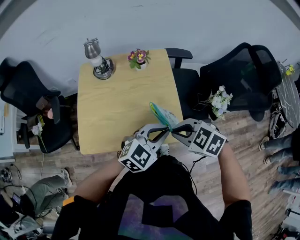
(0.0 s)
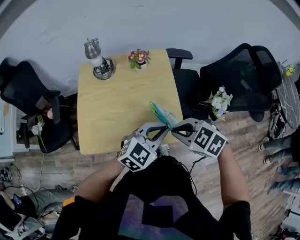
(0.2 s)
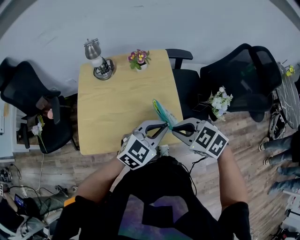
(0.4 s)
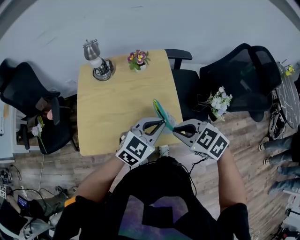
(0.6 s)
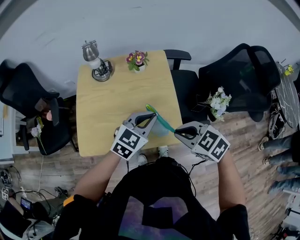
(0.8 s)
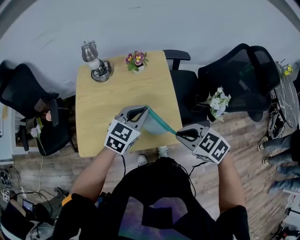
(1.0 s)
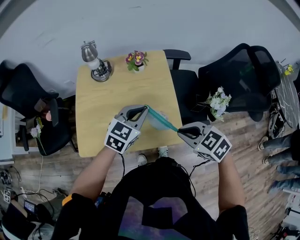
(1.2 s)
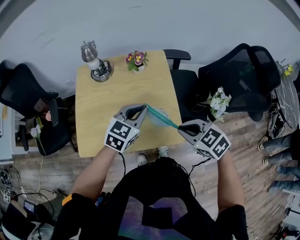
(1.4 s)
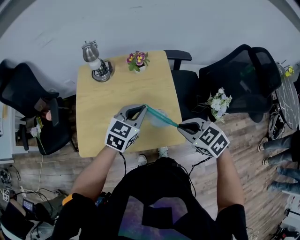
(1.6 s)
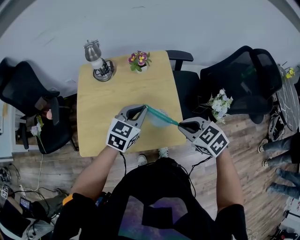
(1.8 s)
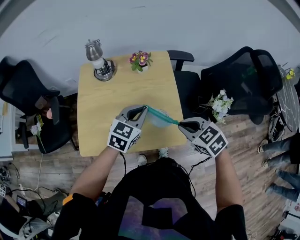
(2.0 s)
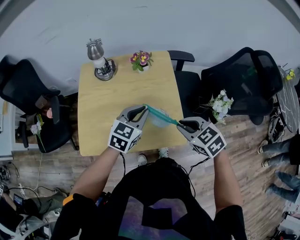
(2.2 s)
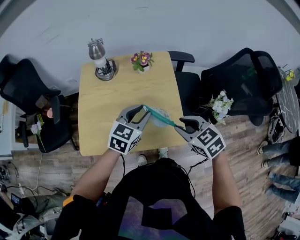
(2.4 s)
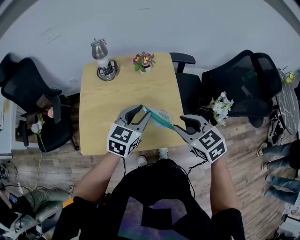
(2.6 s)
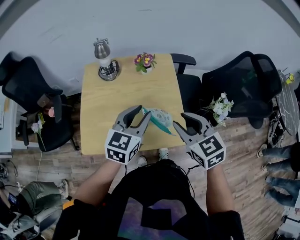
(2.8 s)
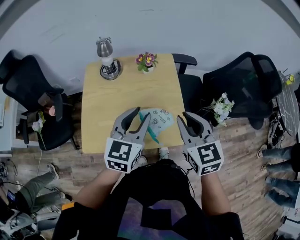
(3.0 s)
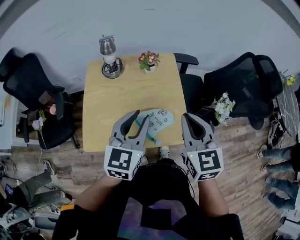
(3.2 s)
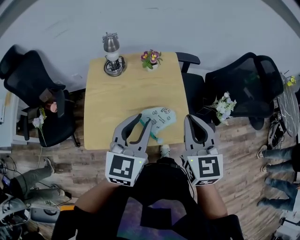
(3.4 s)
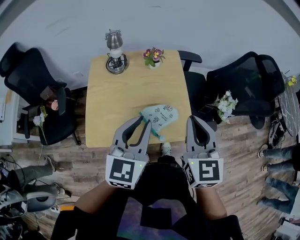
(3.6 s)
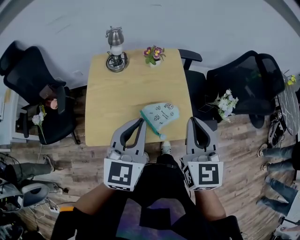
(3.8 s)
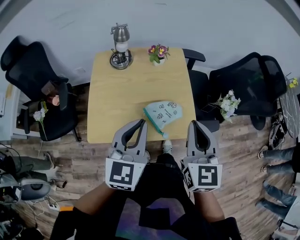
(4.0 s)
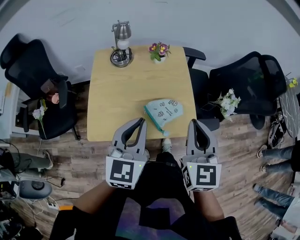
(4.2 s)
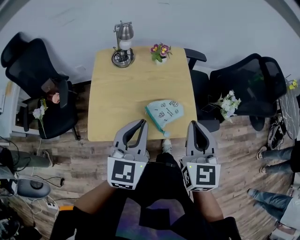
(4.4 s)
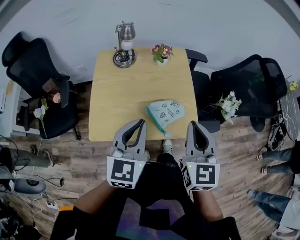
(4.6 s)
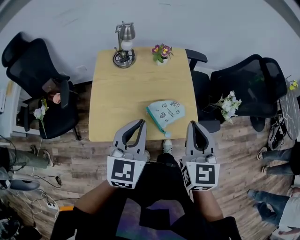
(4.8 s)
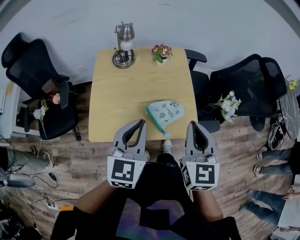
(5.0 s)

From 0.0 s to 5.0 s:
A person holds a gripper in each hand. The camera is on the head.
From 0.0 s to 1.6 s: The right gripper changes place by roughly 5 cm; the left gripper shifts about 15 cm forward and to the left, and swivels approximately 20 degrees.
From 1.6 s to 3.4 s: The right gripper travels upward by about 15 cm, tips its fingers upward by roughly 30 degrees, and opens and closes again. Meanwhile the left gripper travels upward, backward and to the left by roughly 15 cm, changes its angle by about 20 degrees, and opens.
From 3.4 s to 5.0 s: The right gripper shifts by approximately 5 cm. The left gripper ends up approximately 5 cm from where it was, and closes up.

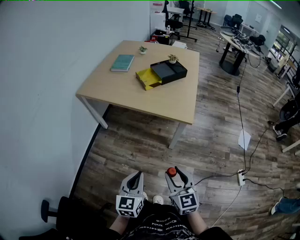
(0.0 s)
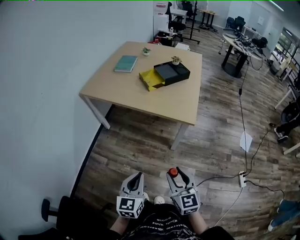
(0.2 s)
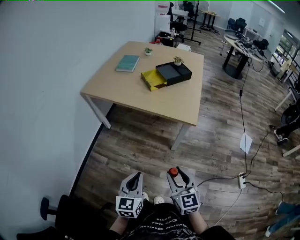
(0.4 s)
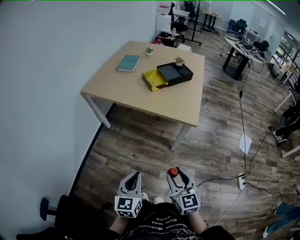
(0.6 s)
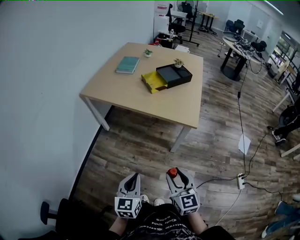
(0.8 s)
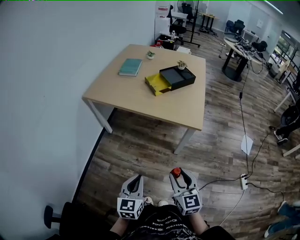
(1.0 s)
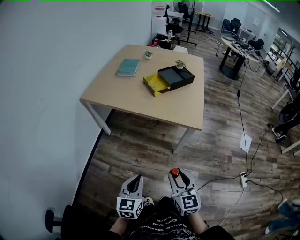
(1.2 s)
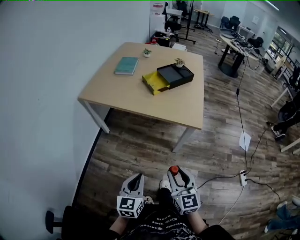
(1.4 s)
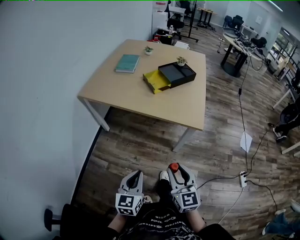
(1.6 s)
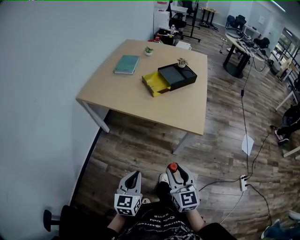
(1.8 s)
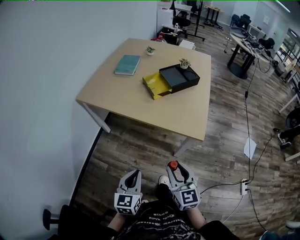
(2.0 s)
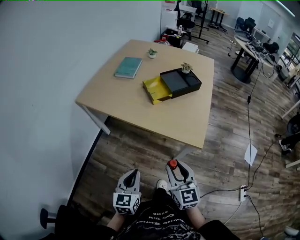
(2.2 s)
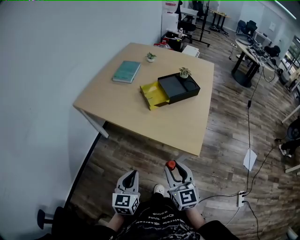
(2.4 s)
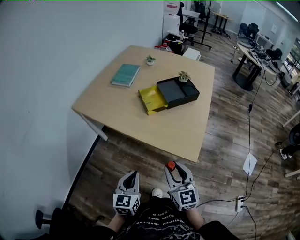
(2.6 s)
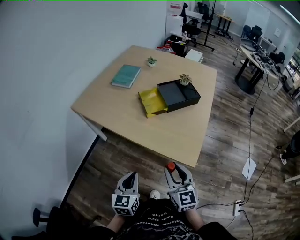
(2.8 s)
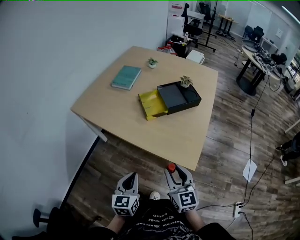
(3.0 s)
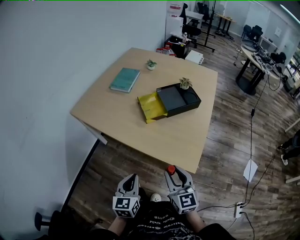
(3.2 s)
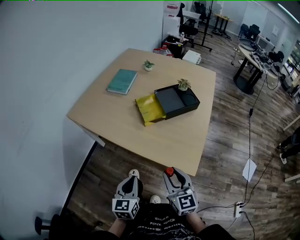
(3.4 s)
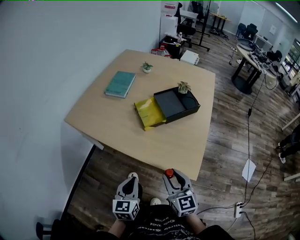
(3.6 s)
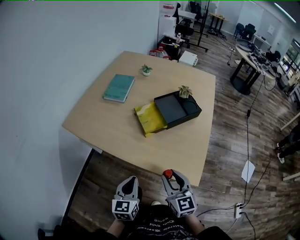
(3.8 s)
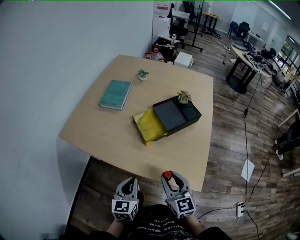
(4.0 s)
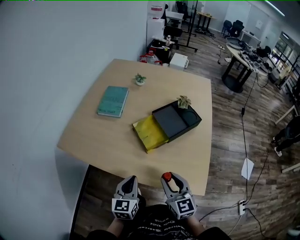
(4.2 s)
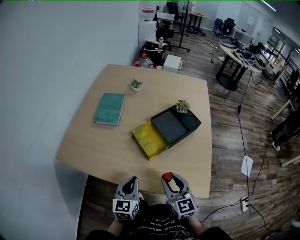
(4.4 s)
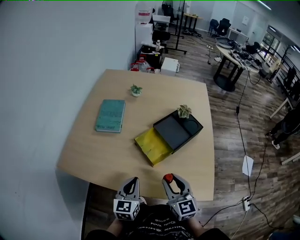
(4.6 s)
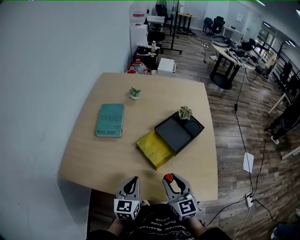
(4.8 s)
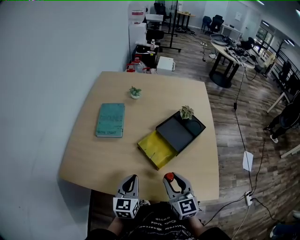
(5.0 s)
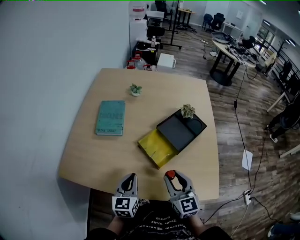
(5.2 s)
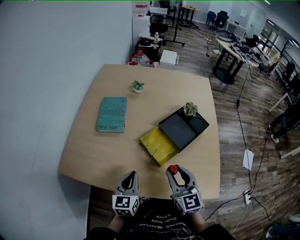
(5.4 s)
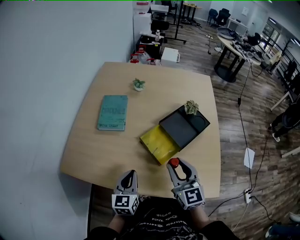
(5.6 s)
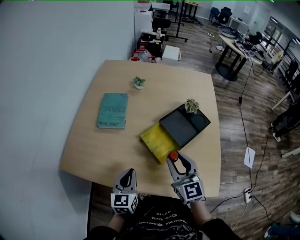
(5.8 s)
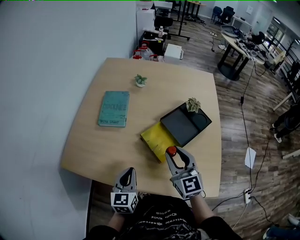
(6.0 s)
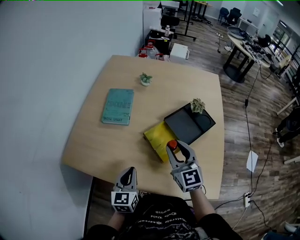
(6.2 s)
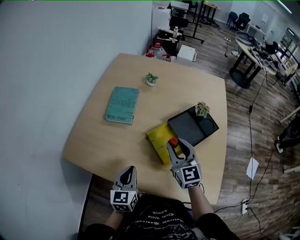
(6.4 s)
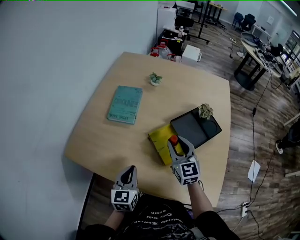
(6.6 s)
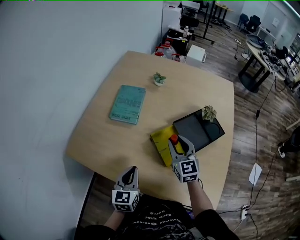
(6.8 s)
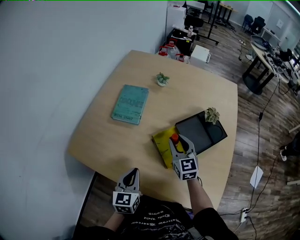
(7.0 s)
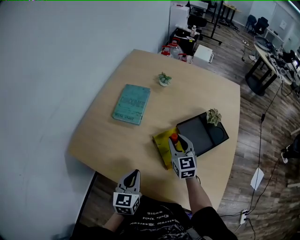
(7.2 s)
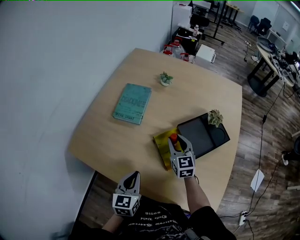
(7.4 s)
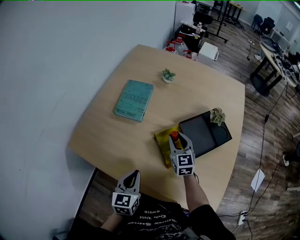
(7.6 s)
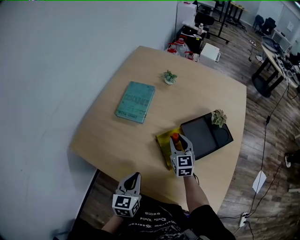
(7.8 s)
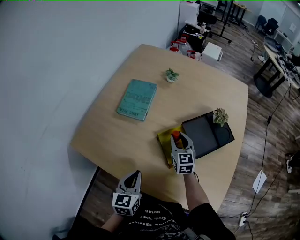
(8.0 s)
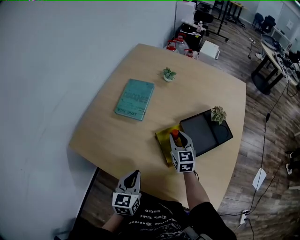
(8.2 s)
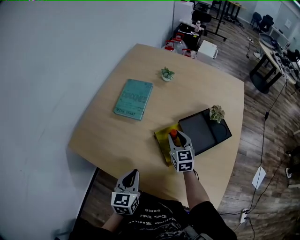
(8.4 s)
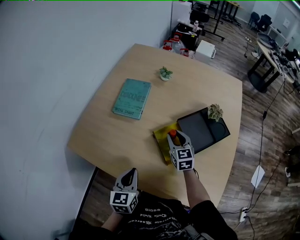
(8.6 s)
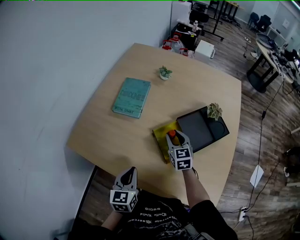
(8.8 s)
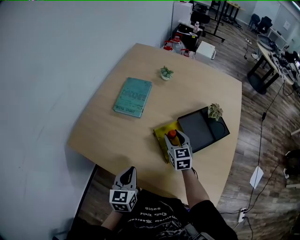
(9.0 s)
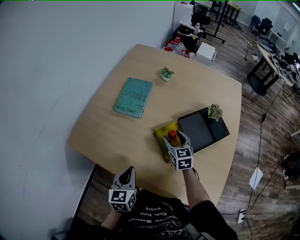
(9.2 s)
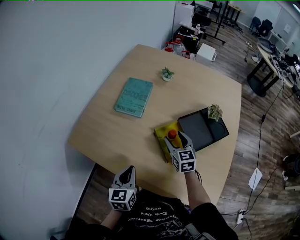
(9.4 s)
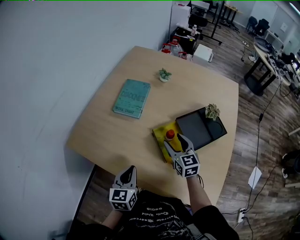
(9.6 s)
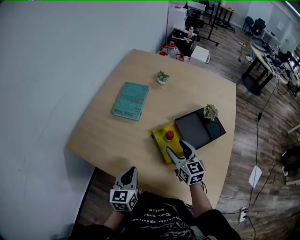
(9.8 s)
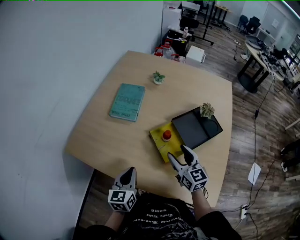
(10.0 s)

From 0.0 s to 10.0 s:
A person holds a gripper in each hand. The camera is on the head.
From 0.0 s to 1.4 s: Both grippers move to the left, some 10 cm.
From 1.4 s to 2.8 s: Both grippers move forward and to the right, roughly 25 cm.
From 2.8 s to 4.2 s: The two grippers go approximately 20 cm forward.
From 4.2 s to 5.8 s: The left gripper goes approximately 15 cm forward and to the left, while the right gripper goes roughly 15 cm forward.
From 5.8 s to 7.2 s: The right gripper shifts about 20 cm forward and downward.
From 7.2 s to 8.6 s: The grippers stay close to where they were, moving slightly.
From 8.6 s to 10.0 s: The right gripper moves backward and upward, approximately 15 cm, and opens up.

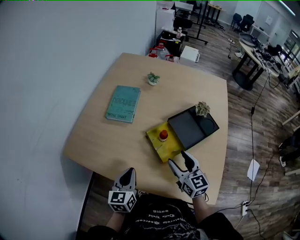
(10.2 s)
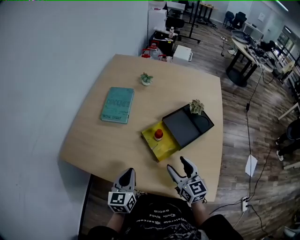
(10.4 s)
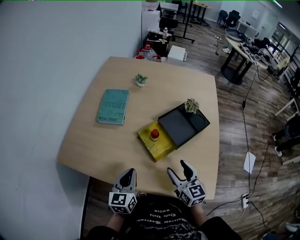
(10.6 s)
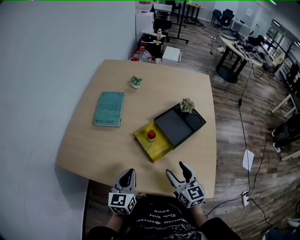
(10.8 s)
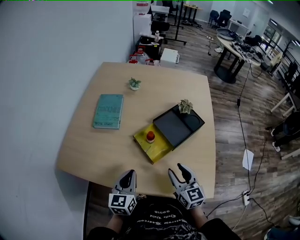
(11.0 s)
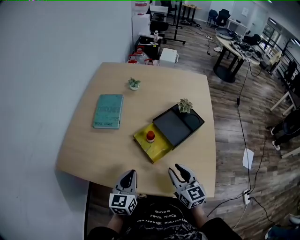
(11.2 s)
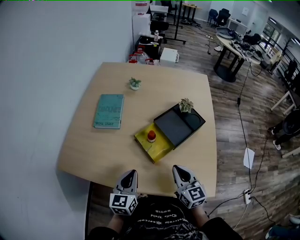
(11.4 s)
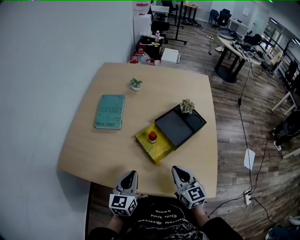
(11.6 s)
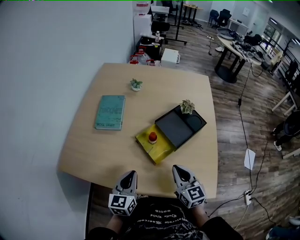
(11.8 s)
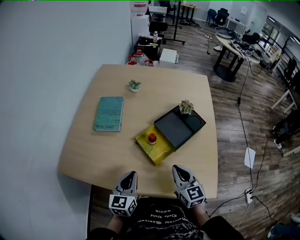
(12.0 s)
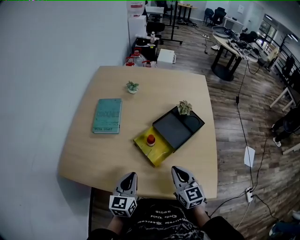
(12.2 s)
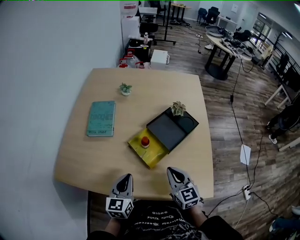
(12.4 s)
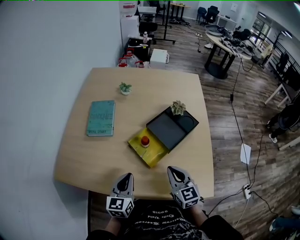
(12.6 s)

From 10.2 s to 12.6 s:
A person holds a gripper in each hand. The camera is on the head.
From 10.2 s to 11.4 s: The right gripper goes approximately 5 cm backward, and closes its fingers. The left gripper shifts by approximately 5 cm.
From 11.4 s to 12.6 s: The grippers make only small movements.

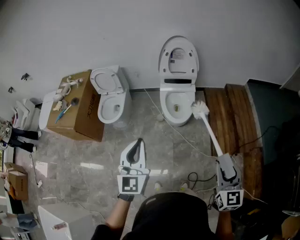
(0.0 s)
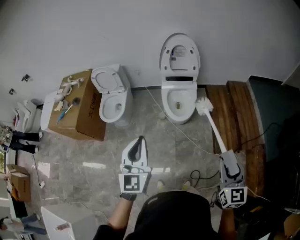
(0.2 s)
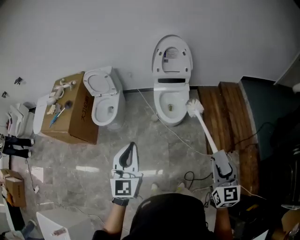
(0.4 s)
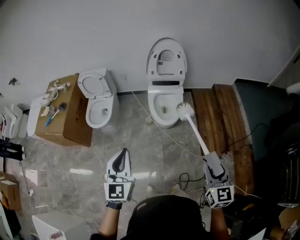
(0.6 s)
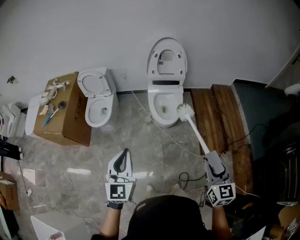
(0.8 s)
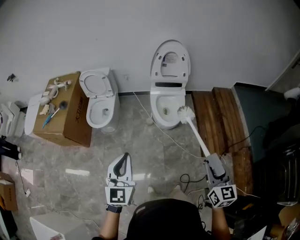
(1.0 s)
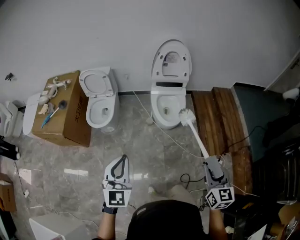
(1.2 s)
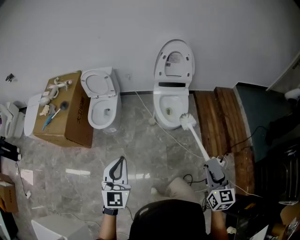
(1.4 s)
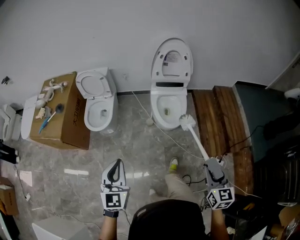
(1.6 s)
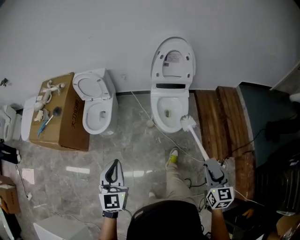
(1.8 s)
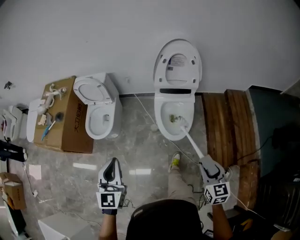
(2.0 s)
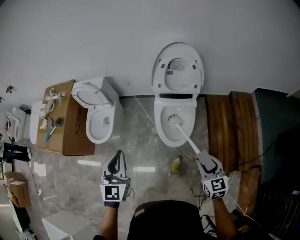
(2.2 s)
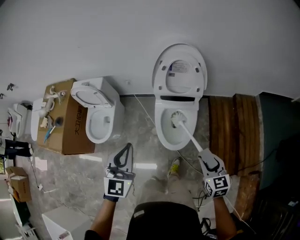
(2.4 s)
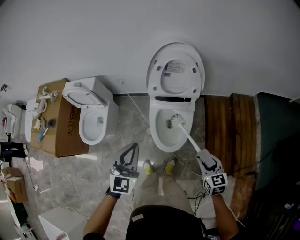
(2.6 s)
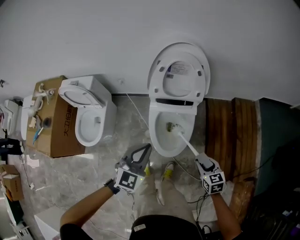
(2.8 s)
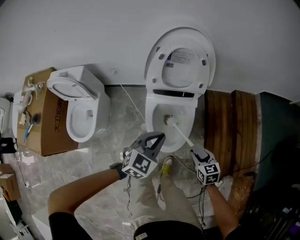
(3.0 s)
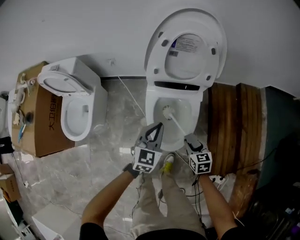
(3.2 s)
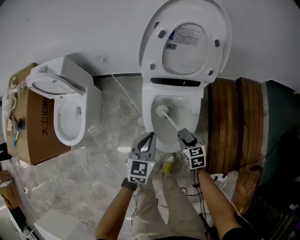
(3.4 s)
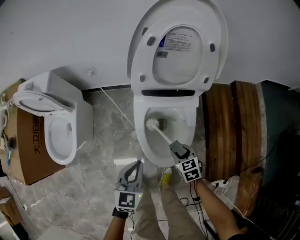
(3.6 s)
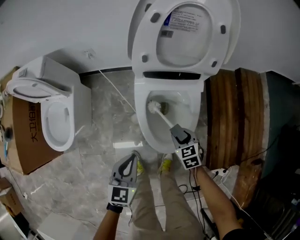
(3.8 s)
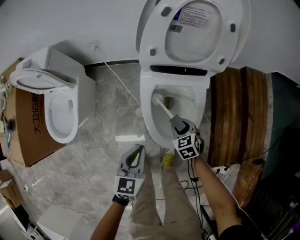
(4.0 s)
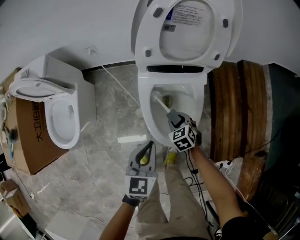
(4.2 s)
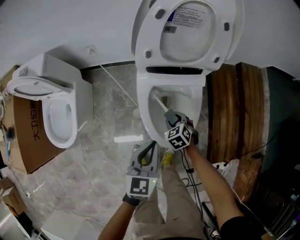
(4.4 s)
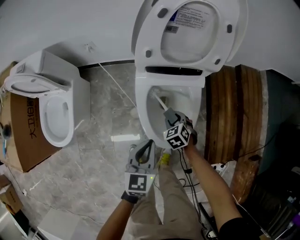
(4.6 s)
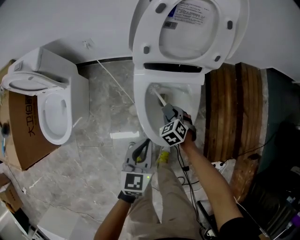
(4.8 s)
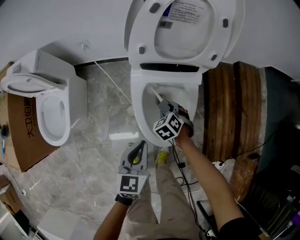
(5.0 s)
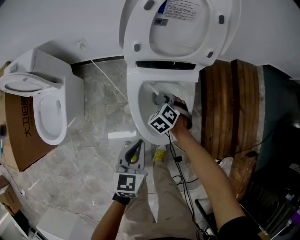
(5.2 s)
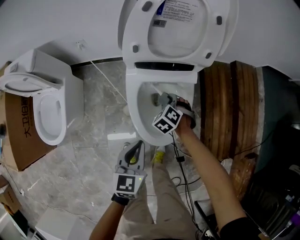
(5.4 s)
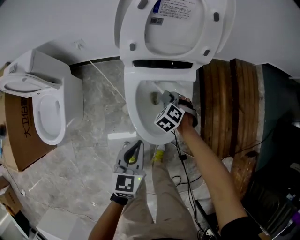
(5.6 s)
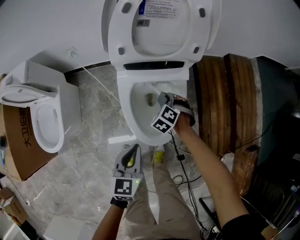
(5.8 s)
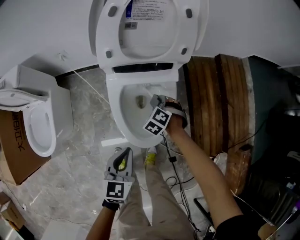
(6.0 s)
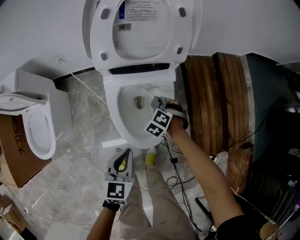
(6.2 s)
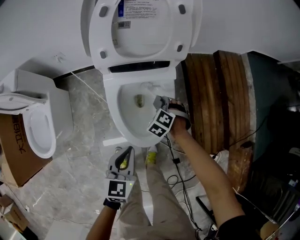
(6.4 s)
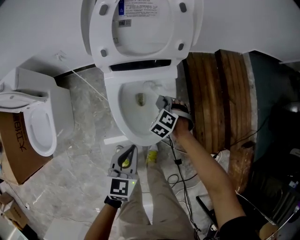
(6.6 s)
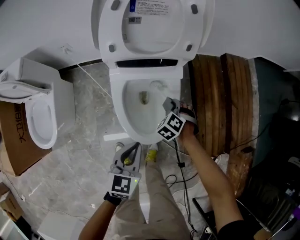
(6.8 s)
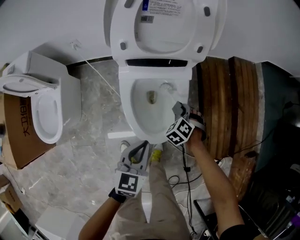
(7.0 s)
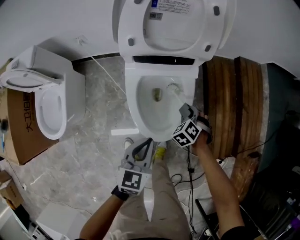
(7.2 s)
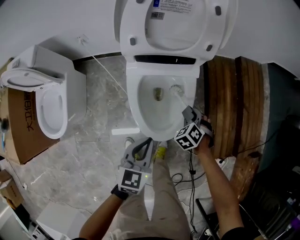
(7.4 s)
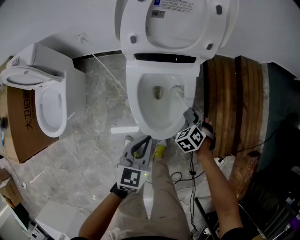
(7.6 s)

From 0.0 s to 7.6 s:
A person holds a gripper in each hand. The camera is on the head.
From 0.0 s to 1.6 s: The left gripper goes about 20 cm to the left and downward; the right gripper heads to the left, downward and forward, covering about 15 cm.
From 1.6 s to 3.0 s: The two grippers travel together, forward and to the right, some 50 cm. Both grippers travel together downward, about 30 cm. The right gripper changes its angle by about 30 degrees, while the left gripper turns by roughly 40 degrees.
From 3.0 s to 4.6 s: The right gripper goes roughly 35 cm downward, to the left and forward, and changes its angle by about 30 degrees. Meanwhile the left gripper is displaced downward by approximately 20 cm, and turns by about 30 degrees.
From 4.6 s to 6.0 s: The right gripper moves forward and to the right, approximately 10 cm, and turns by about 20 degrees.
From 6.0 s to 7.6 s: The right gripper goes approximately 10 cm to the right and backward.
